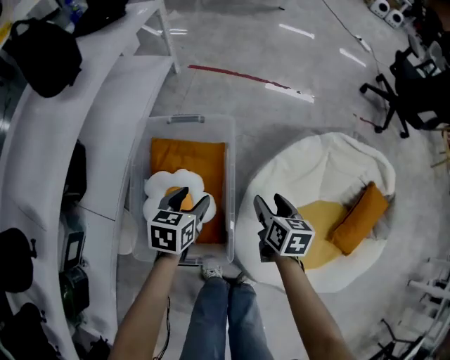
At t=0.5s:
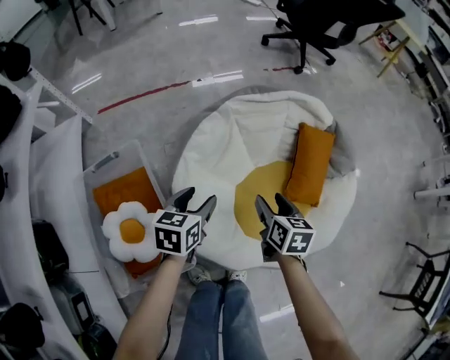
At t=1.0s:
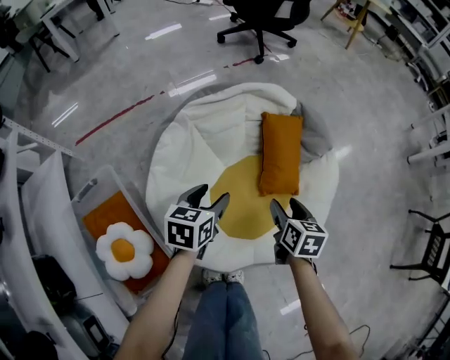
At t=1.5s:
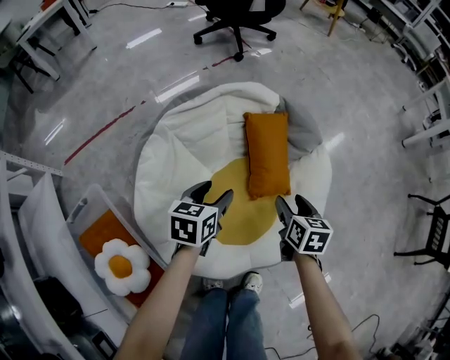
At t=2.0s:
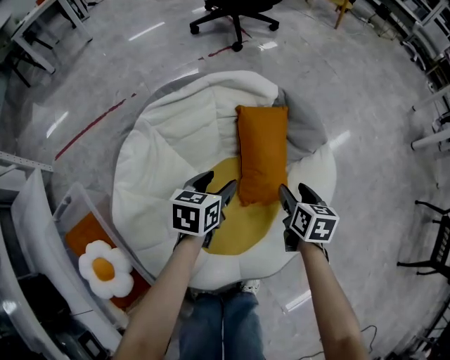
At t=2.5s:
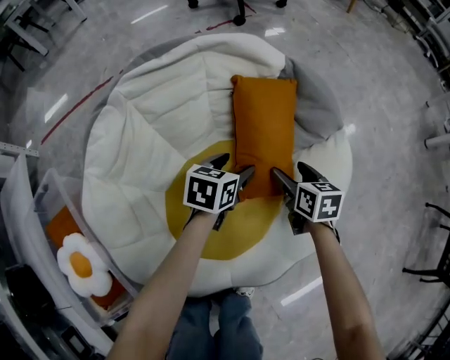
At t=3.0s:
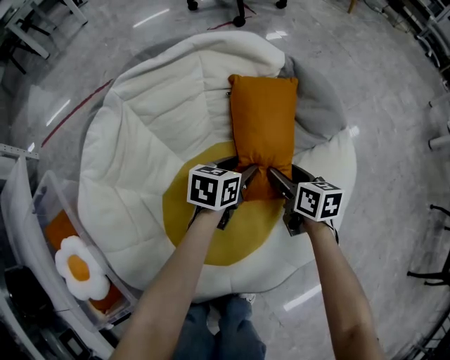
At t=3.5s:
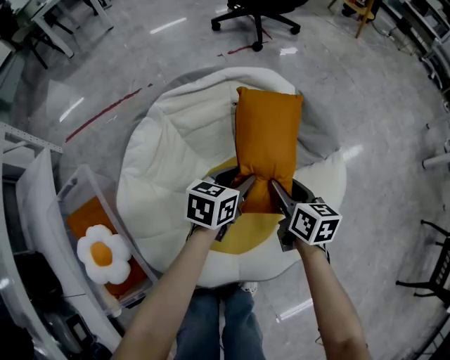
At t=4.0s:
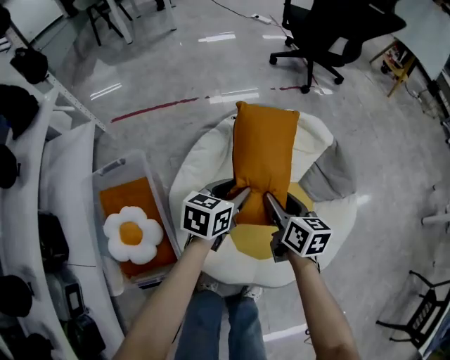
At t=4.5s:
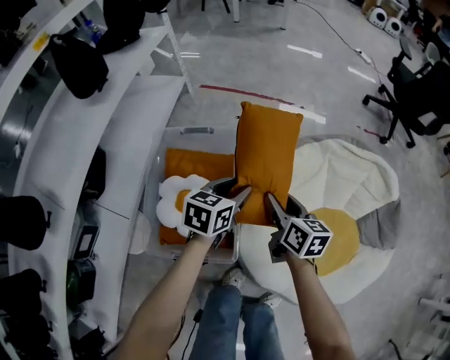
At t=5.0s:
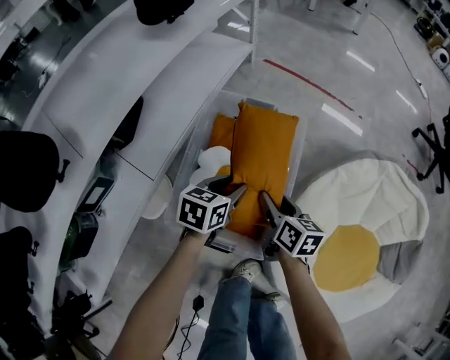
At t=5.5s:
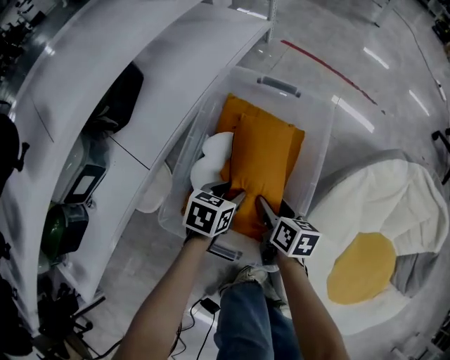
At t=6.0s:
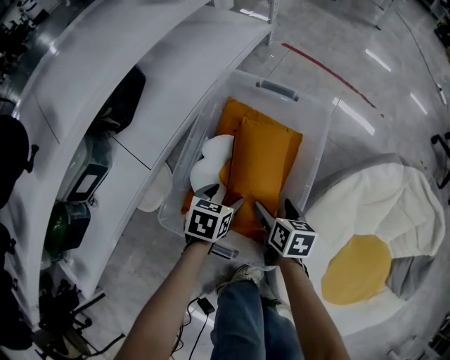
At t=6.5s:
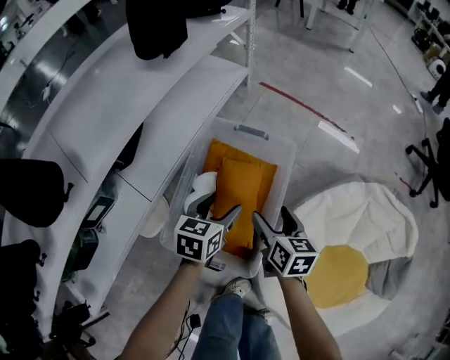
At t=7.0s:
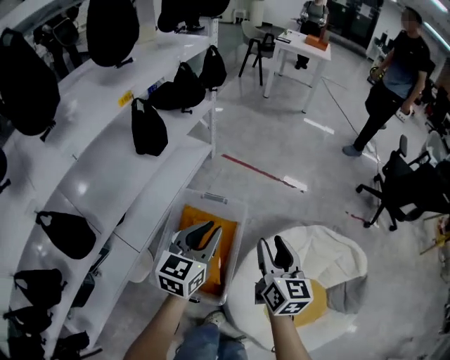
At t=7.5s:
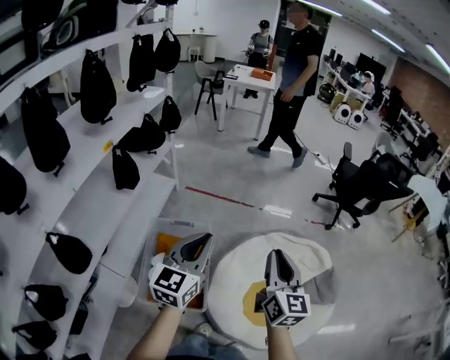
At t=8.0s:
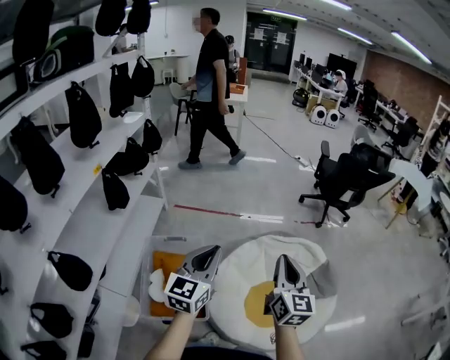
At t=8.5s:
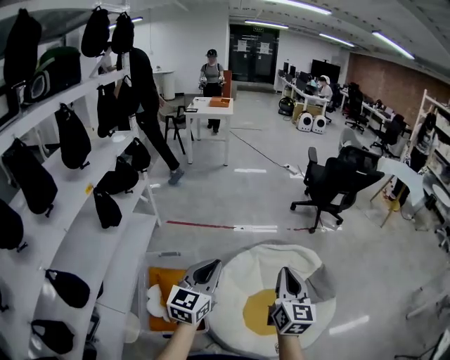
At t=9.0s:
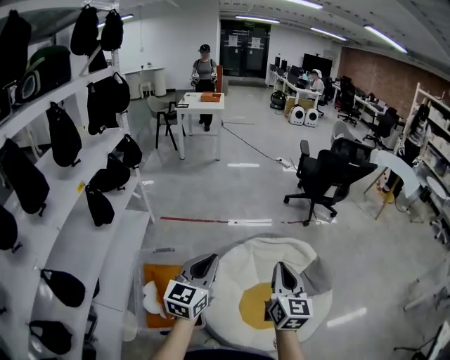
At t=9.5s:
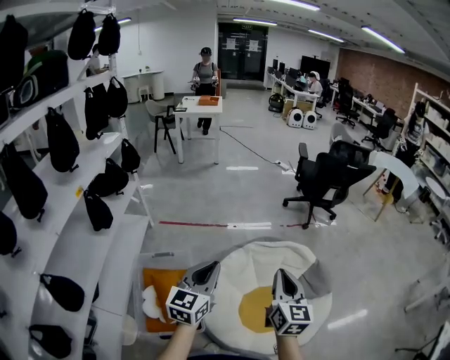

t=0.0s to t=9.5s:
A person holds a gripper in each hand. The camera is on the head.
t=0.0s to t=2.0s: The pair of grippers is taken about 60 cm. The right gripper swivels roughly 40 degrees; the left gripper rotates some 50 degrees.
t=2.0s to t=4.0s: The left gripper shifts about 20 cm upward, to the left and backward, while the right gripper shifts roughly 30 cm to the left and upward, and turns by about 30 degrees.
t=4.0s to t=5.5s: The two grippers travel together, roughly 60 cm. The left gripper swivels some 40 degrees; the right gripper changes its angle by approximately 40 degrees.
t=5.5s to t=7.5s: Both grippers travel together upward, about 70 cm. The left gripper points its fingers some 50 degrees further upward, and closes up. The right gripper points its fingers some 40 degrees further upward, and closes up.
t=7.5s to t=9.5s: The two grippers go approximately 15 cm to the right.

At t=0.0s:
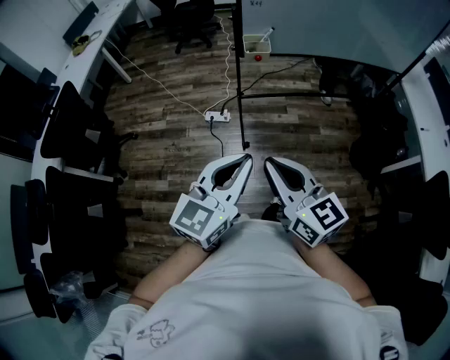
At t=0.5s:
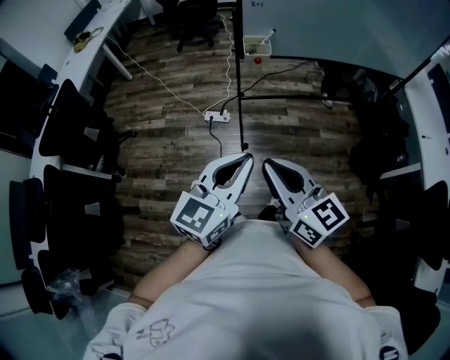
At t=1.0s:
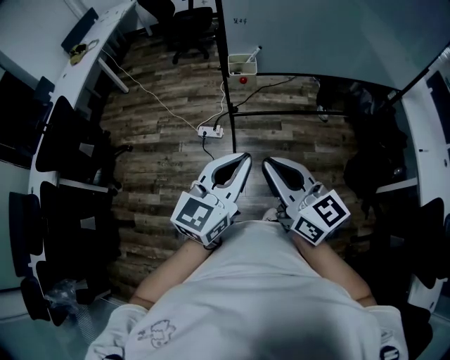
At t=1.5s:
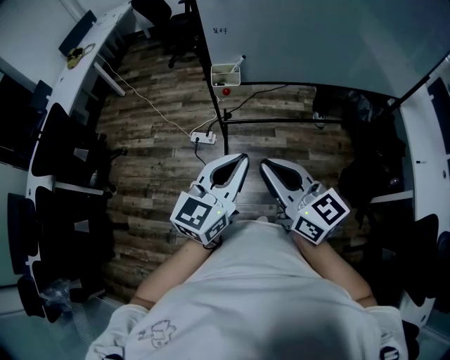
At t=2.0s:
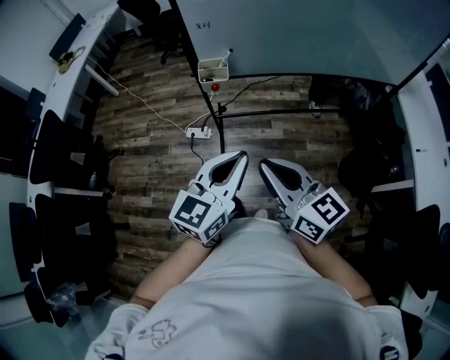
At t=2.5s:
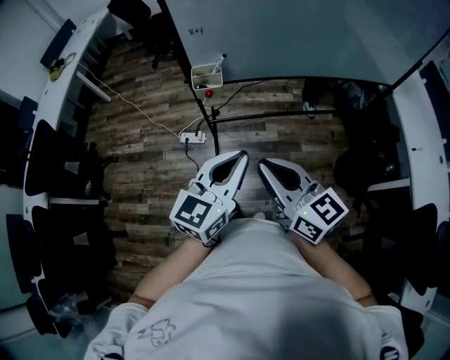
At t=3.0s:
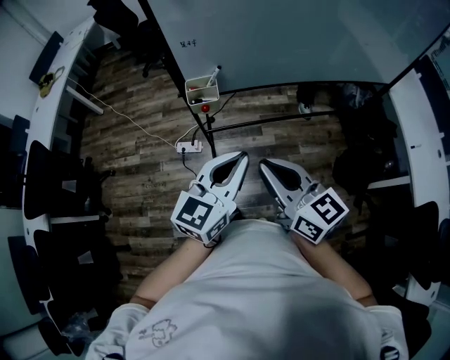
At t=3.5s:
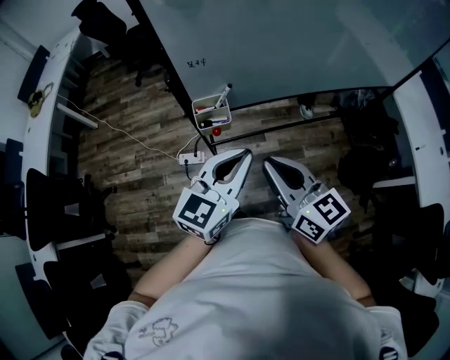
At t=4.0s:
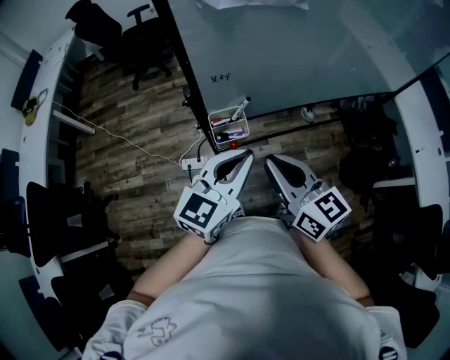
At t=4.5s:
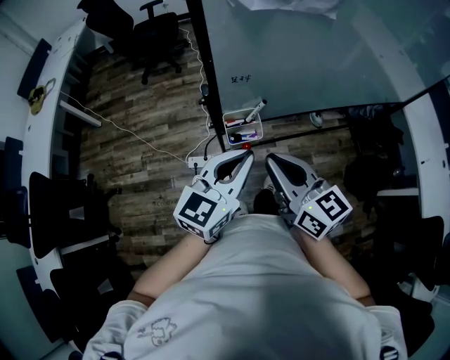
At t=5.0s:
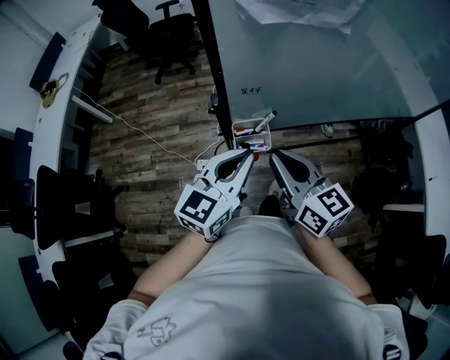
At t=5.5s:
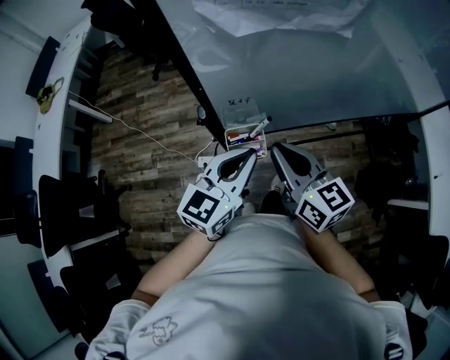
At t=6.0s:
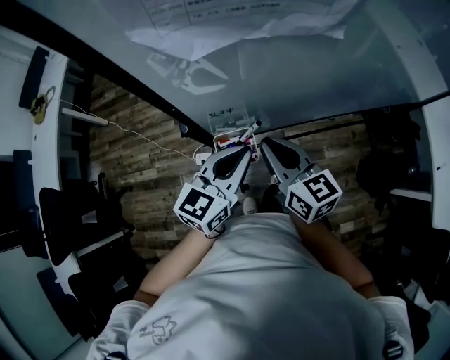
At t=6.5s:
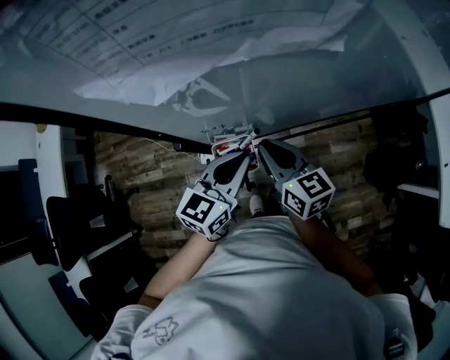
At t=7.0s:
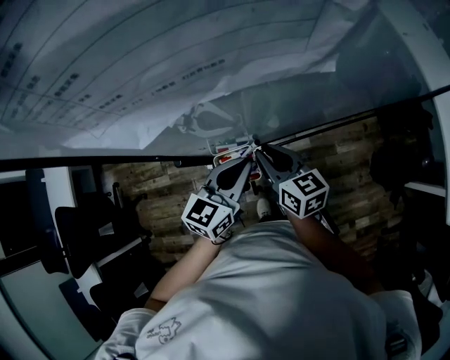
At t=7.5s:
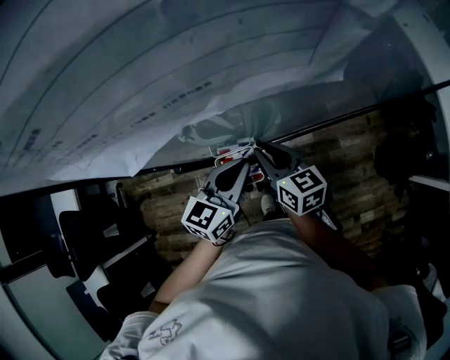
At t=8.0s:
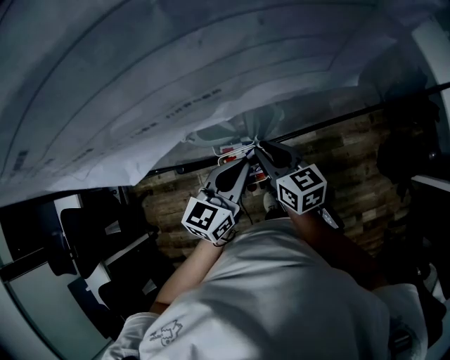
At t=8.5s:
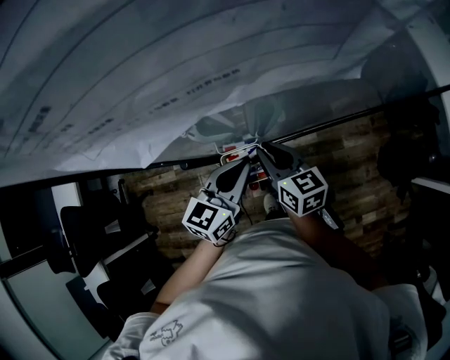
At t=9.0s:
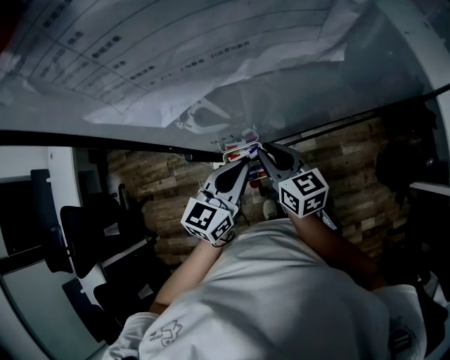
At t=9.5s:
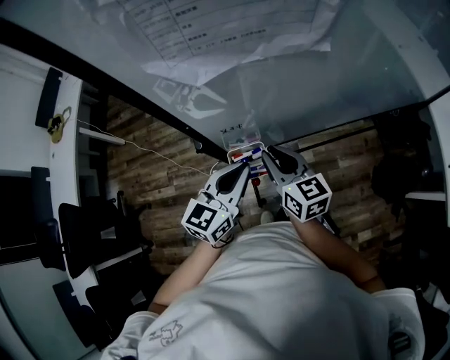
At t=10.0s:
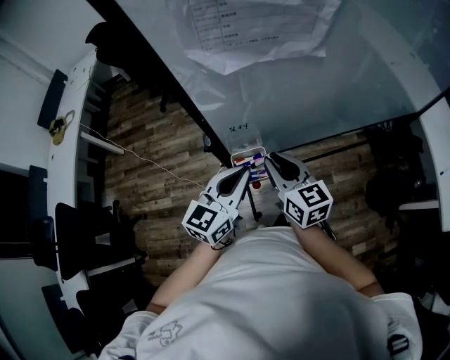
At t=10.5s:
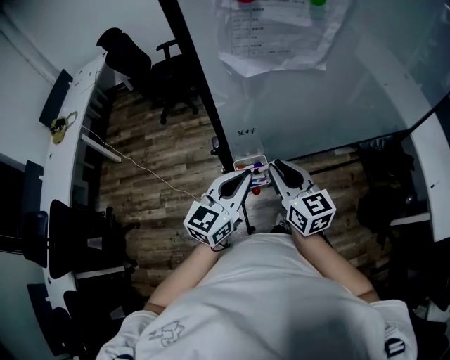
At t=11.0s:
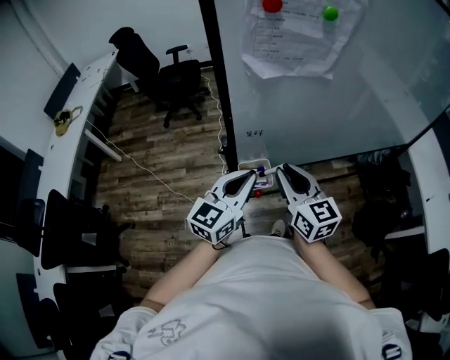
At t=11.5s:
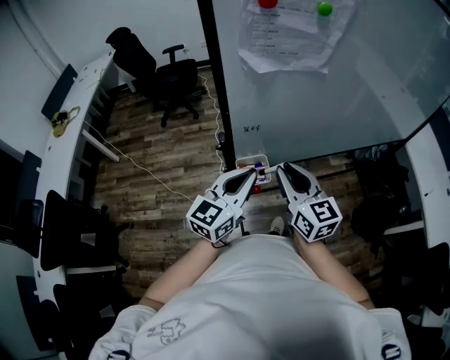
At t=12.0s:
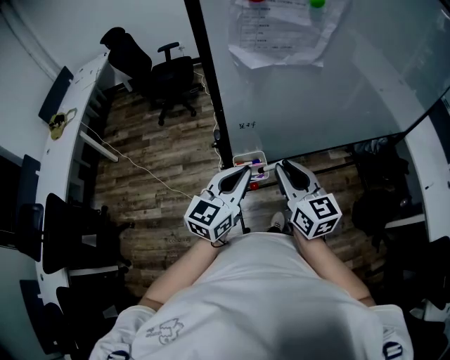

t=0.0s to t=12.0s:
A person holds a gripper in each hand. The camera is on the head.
t=0.0s to t=2.0s: The two grippers go some 25 cm to the right and forward.
t=2.0s to t=4.0s: Both grippers move forward and to the left, roughly 30 cm.
t=4.0s to t=6.0s: The left gripper moves forward and downward, roughly 15 cm. Meanwhile the right gripper shifts roughly 15 cm forward.
t=6.0s to t=8.0s: The left gripper shifts some 5 cm downward; the right gripper is displaced downward and forward by some 10 cm.
t=8.0s to t=10.0s: Both grippers move upward and backward, about 10 cm.
t=10.0s to t=12.0s: The right gripper goes some 10 cm upward and backward; the left gripper changes place by roughly 5 cm.

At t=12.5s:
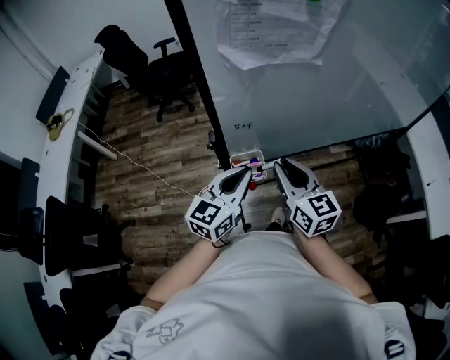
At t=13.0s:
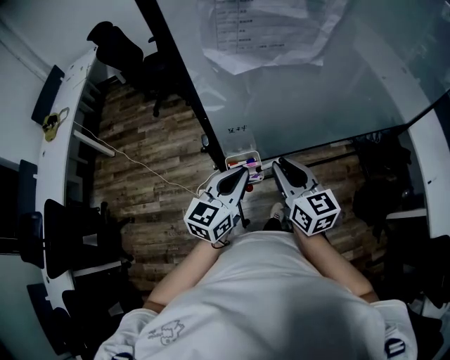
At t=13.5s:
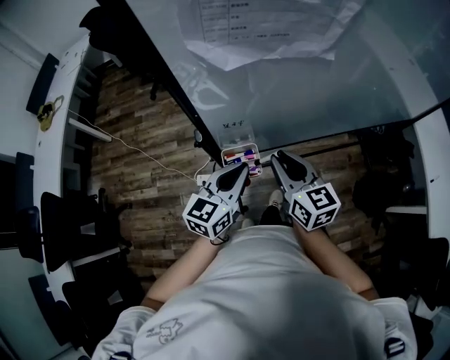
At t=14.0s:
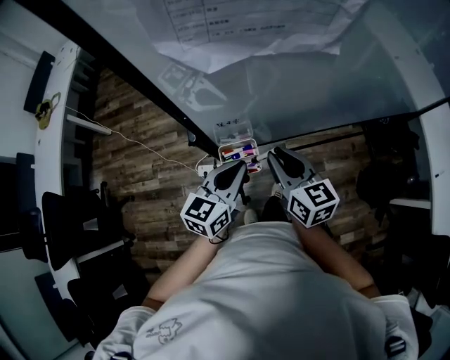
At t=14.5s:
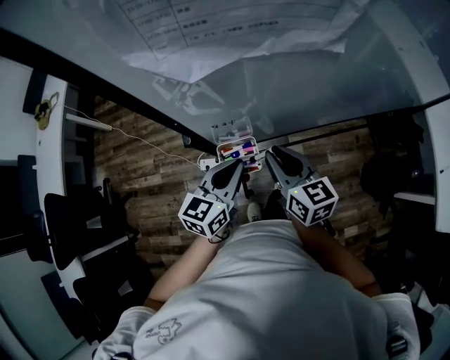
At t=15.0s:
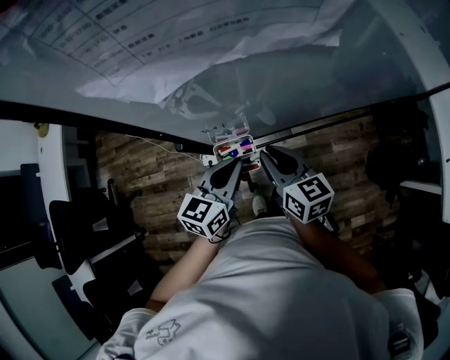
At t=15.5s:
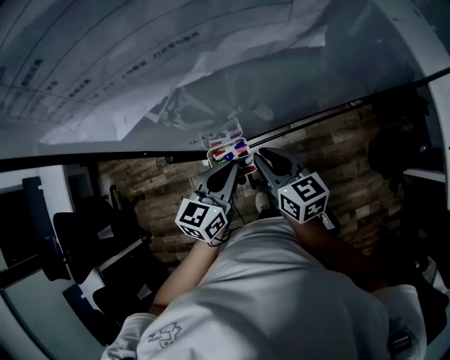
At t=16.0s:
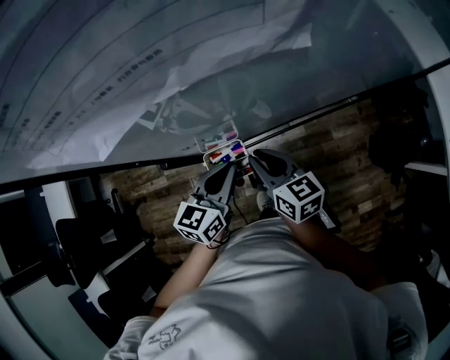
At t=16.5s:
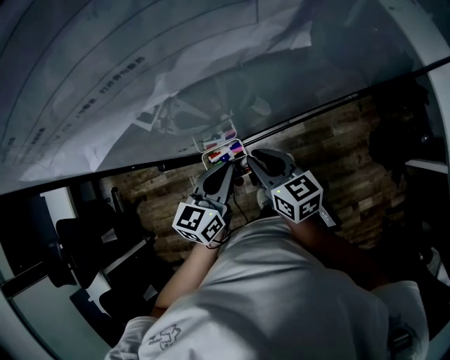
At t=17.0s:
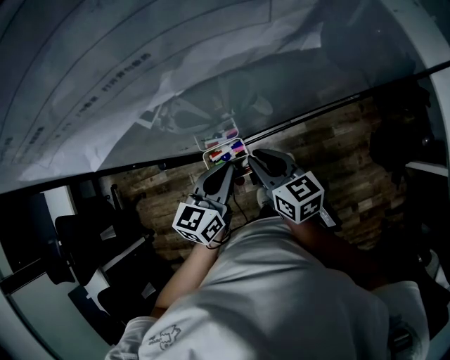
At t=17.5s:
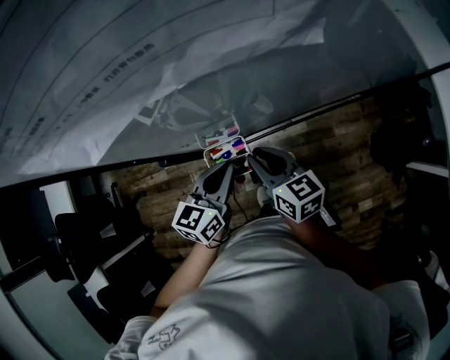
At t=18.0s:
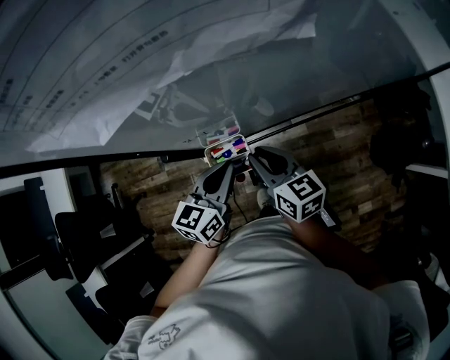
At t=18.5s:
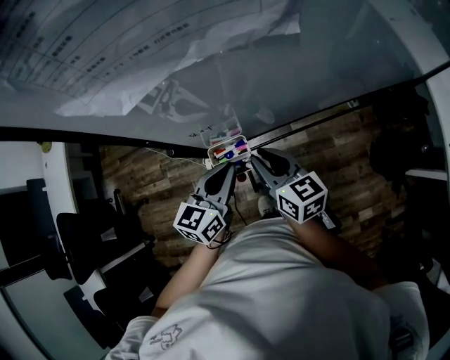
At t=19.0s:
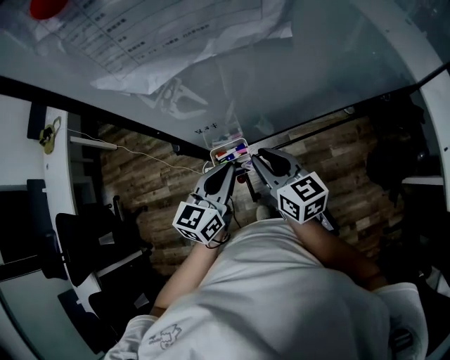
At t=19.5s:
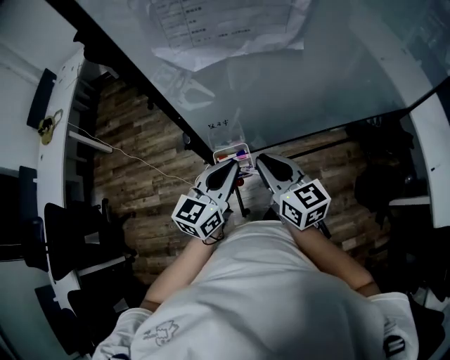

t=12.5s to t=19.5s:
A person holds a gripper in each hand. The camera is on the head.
t=12.5s to t=14.5s: Both grippers move downward and forward, about 10 cm.
t=14.5s to t=16.0s: The right gripper travels downward by approximately 5 cm.
t=16.0s to t=17.5s: Neither gripper changes place.
t=17.5s to t=19.5s: Both grippers travel together upward, some 10 cm.
